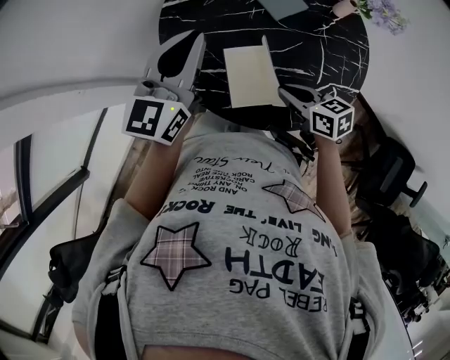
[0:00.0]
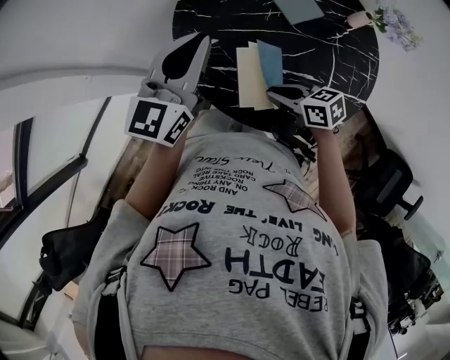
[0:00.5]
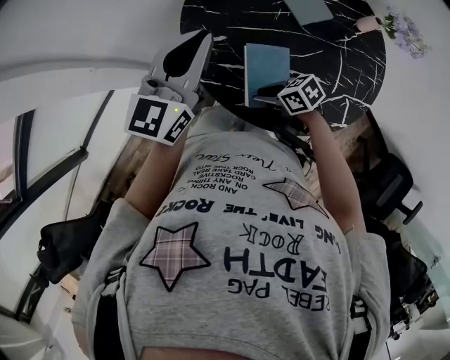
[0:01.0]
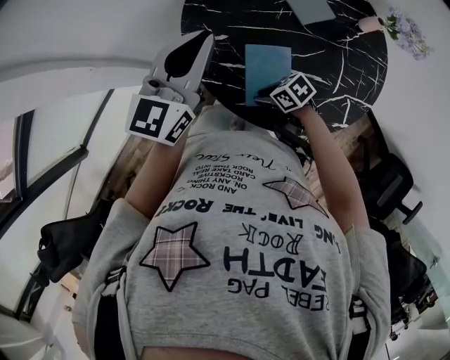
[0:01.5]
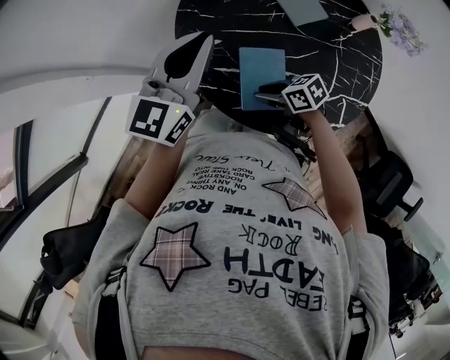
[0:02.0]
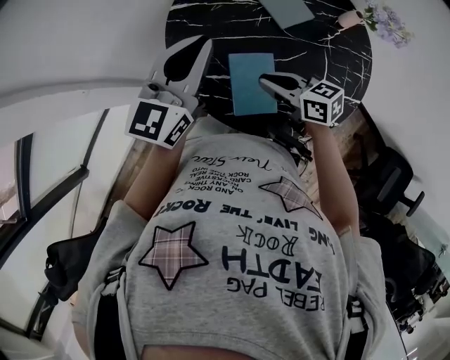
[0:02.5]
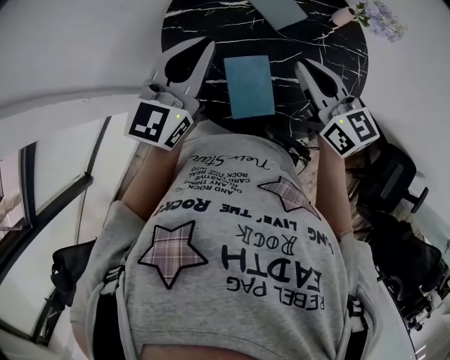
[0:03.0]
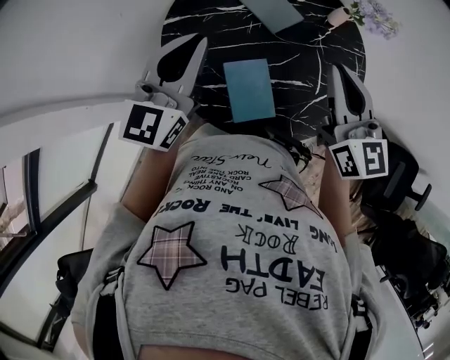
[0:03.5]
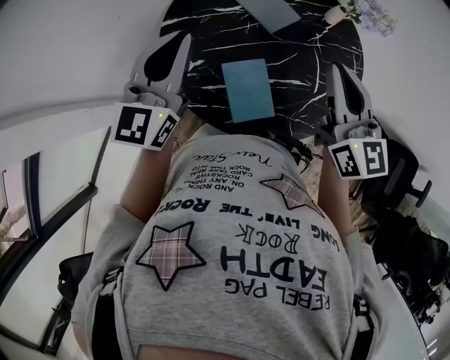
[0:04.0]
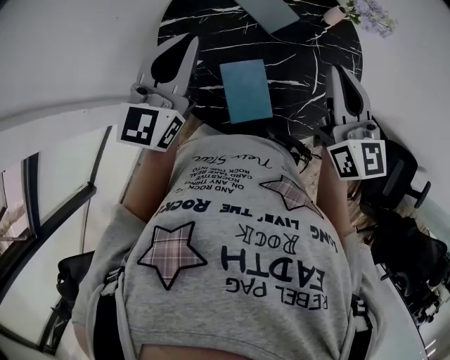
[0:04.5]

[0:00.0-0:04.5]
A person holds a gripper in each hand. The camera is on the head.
0.0 to 2.0 s: The right gripper changes place by about 10 cm, and turns by some 30 degrees.
2.0 to 4.5 s: The left gripper changes place by some 5 cm. Meanwhile the right gripper travels upward by about 30 cm, angles its fingers upward, by approximately 30 degrees, and closes up.

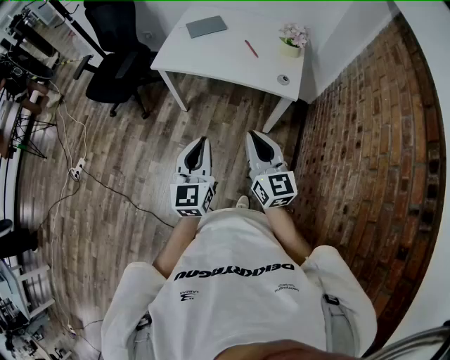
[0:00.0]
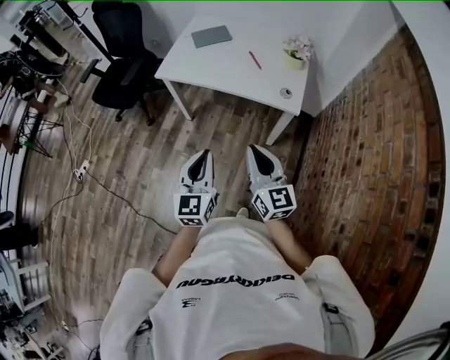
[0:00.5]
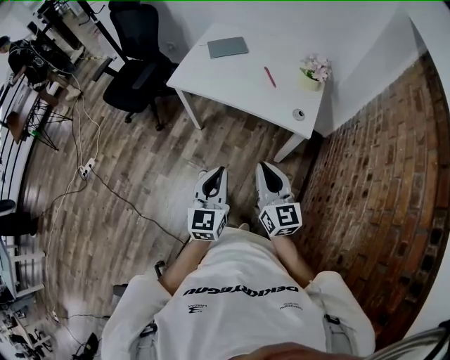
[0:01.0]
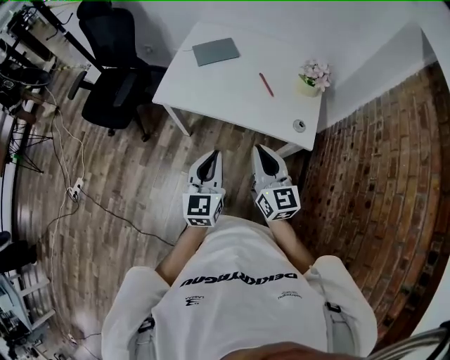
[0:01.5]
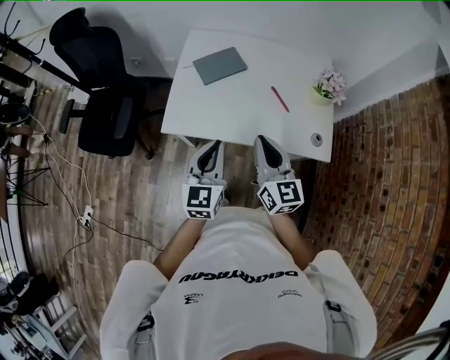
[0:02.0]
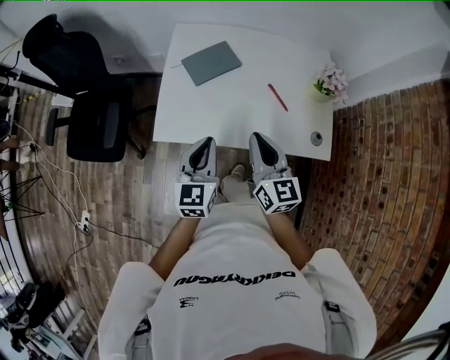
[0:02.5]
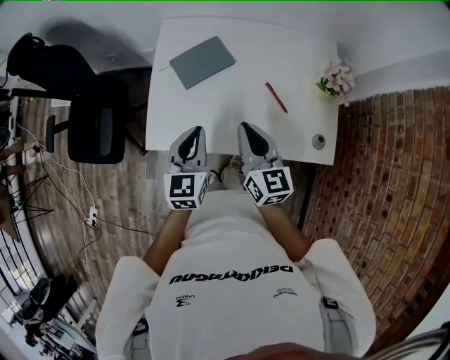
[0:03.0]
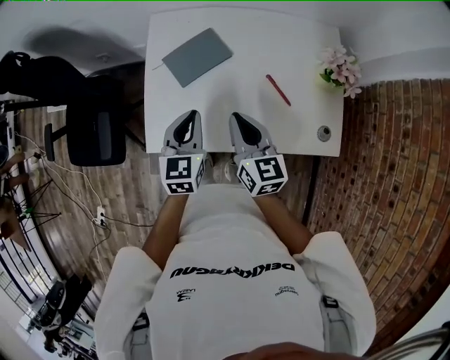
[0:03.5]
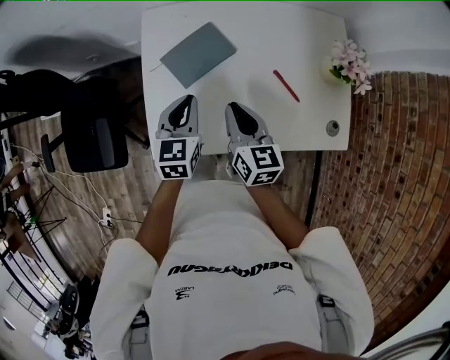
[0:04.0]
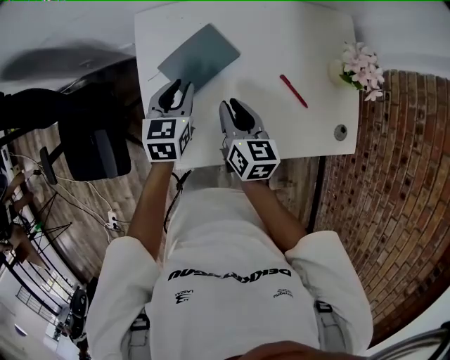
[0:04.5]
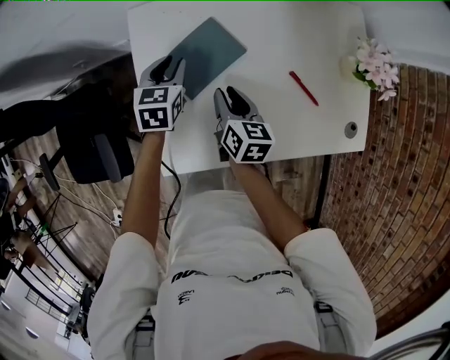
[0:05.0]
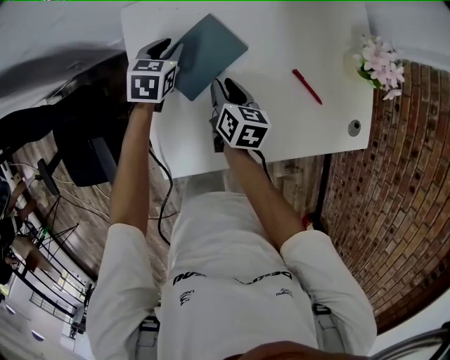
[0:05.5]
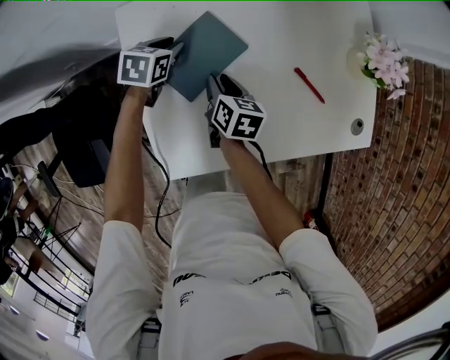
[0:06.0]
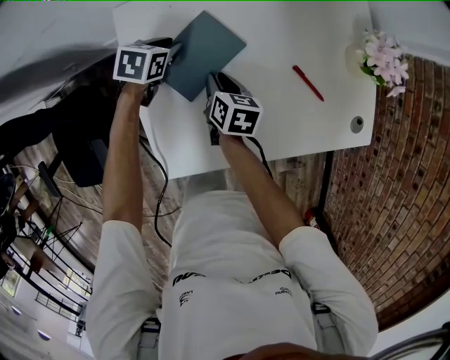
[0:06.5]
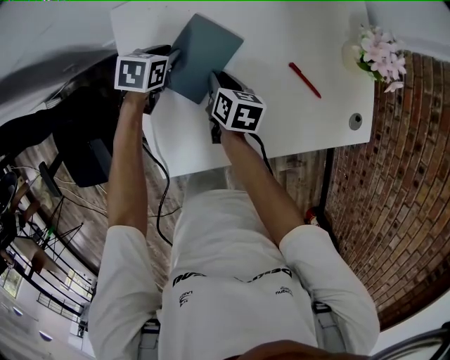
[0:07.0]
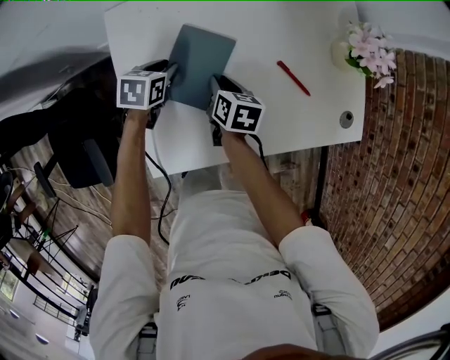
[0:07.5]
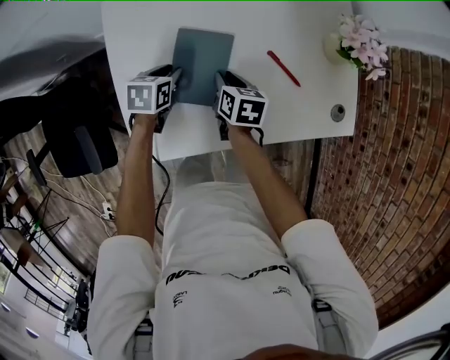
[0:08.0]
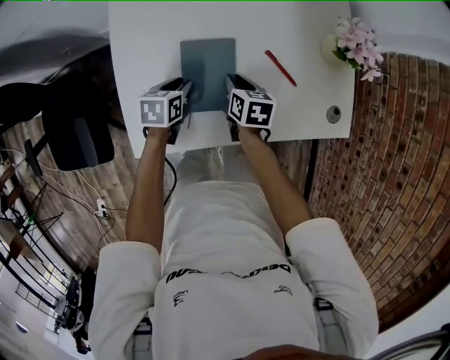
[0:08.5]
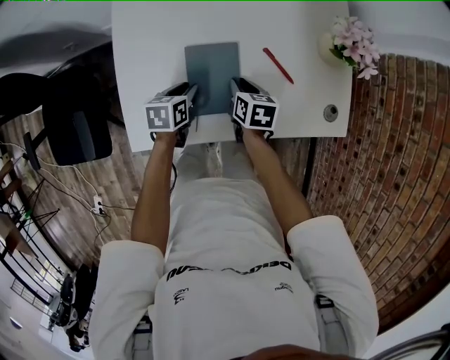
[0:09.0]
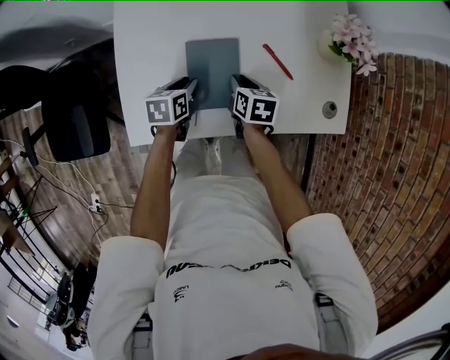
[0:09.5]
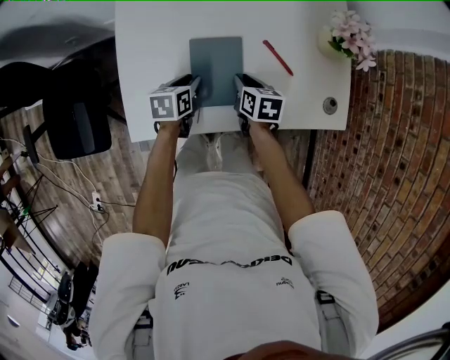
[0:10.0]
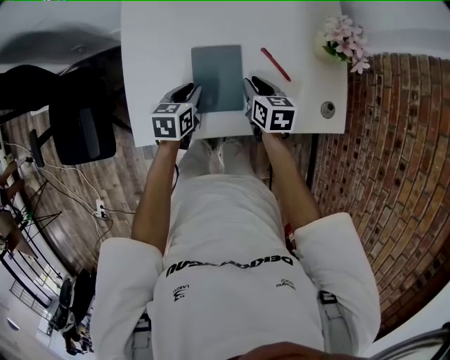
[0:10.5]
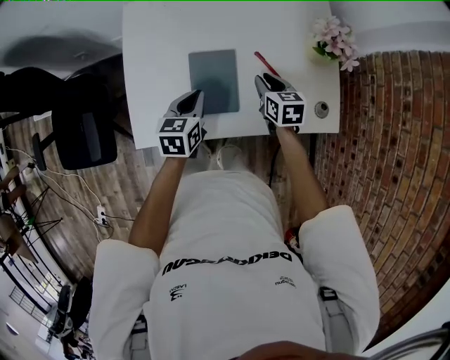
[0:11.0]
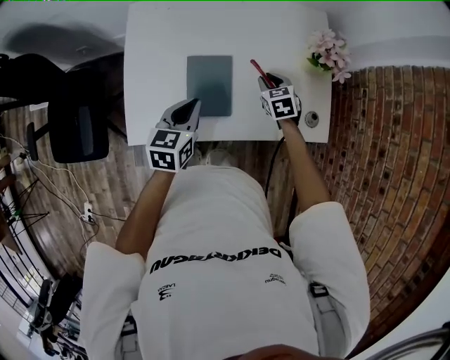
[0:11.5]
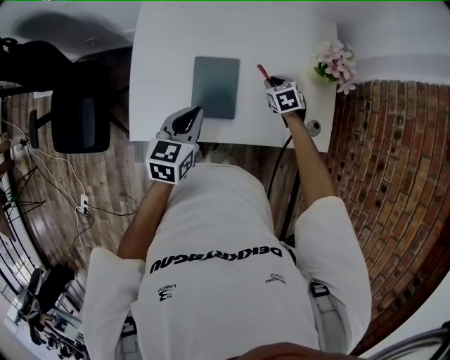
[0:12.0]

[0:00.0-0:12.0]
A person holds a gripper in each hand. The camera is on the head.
0.0 to 2.0 s: The pair of grippers is taken forward, approximately 40 cm.
2.0 to 4.0 s: The two grippers go about 30 cm forward and downward. The right gripper swivels roughly 20 degrees. Meanwhile the left gripper rotates some 20 degrees.
4.0 to 6.0 s: The right gripper travels downward and forward by about 20 cm, swivels about 30 degrees, and opens. The left gripper shifts about 30 cm forward and downward, swivels some 30 degrees, and opens.
6.0 to 8.0 s: The right gripper moves to the right, some 10 cm, while the left gripper heads backward and to the right, covering approximately 15 cm.
8.0 to 10.0 s: The right gripper moves to the right and backward, about 10 cm. The left gripper heads backward and to the right, covering roughly 10 cm.
10.0 to 12.0 s: The left gripper shifts about 20 cm upward, swivels roughly 20 degrees, and closes, while the right gripper goes roughly 15 cm to the right and forward, and rolls counterclockwise, seen from behind, by about 40 degrees.

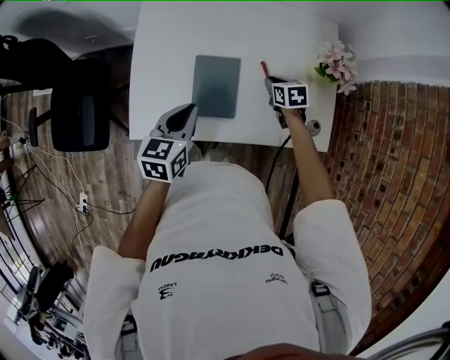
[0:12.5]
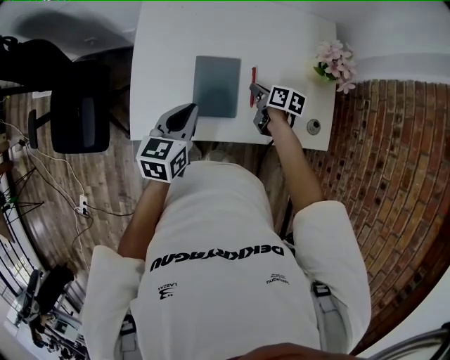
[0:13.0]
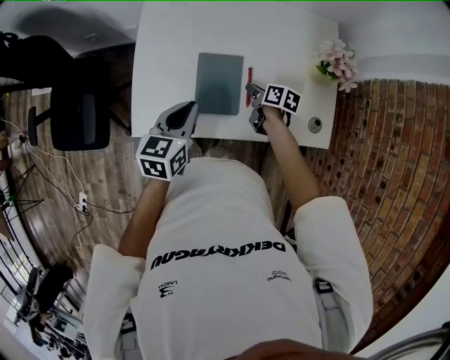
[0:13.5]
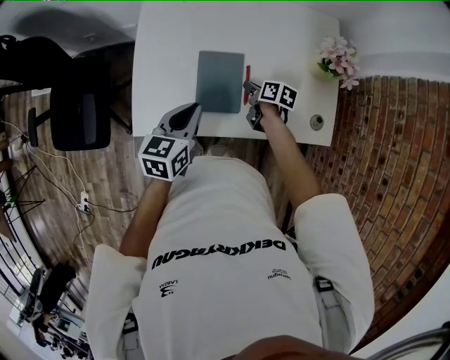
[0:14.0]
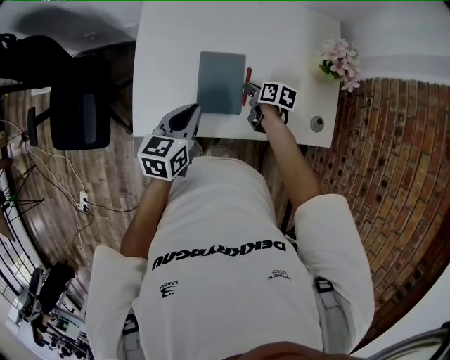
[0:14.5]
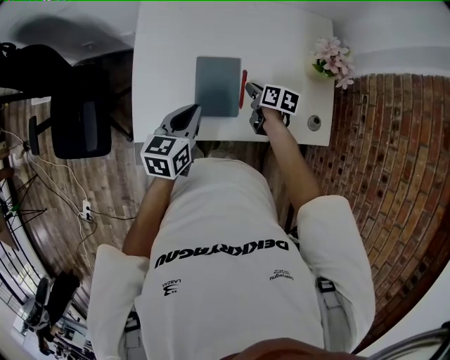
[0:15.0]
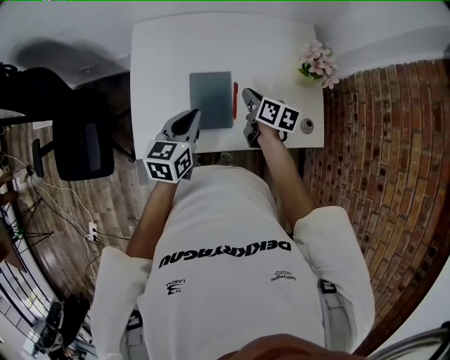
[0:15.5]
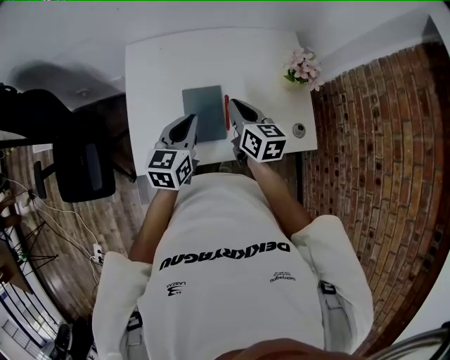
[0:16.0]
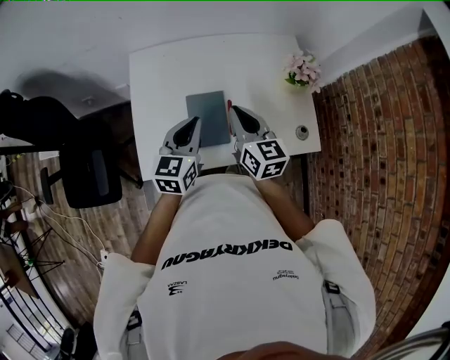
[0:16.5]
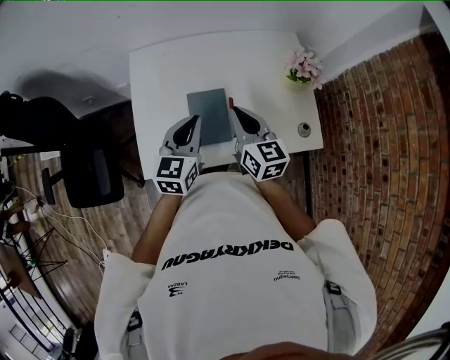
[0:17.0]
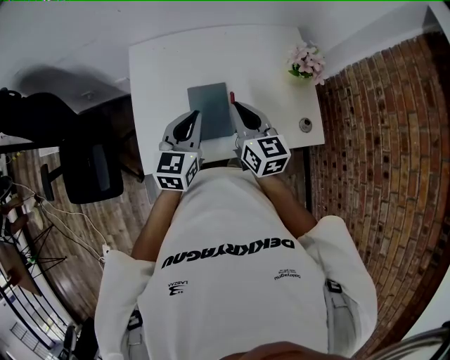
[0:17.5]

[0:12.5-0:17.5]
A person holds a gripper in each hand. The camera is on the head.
12.5 to 15.0 s: The right gripper is displaced to the left by roughly 5 cm, and swivels about 30 degrees.
15.0 to 17.5 s: The left gripper heads upward, covering about 10 cm, and swivels approximately 20 degrees; the right gripper moves upward, approximately 25 cm, and angles its fingers upward, by roughly 30 degrees.

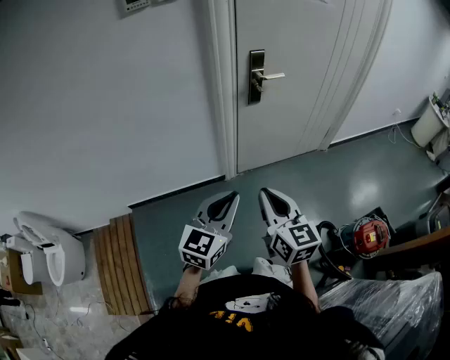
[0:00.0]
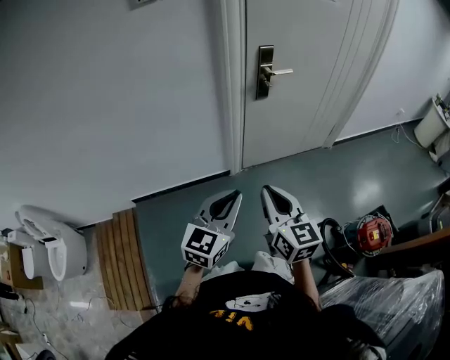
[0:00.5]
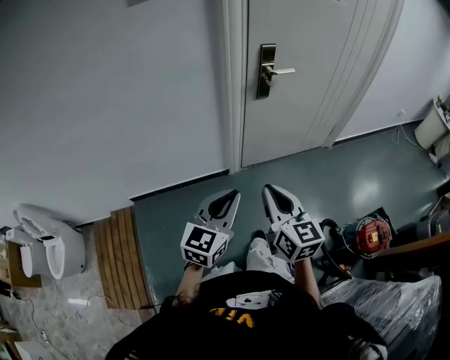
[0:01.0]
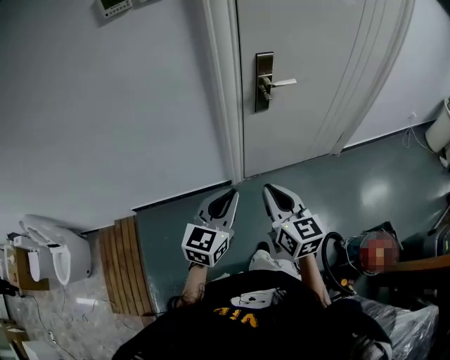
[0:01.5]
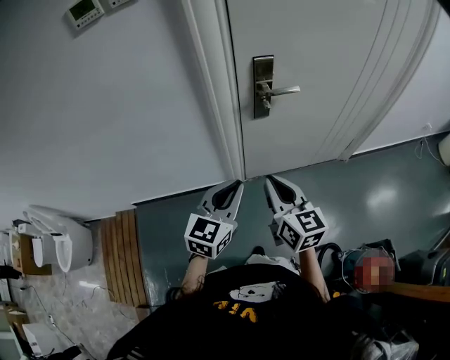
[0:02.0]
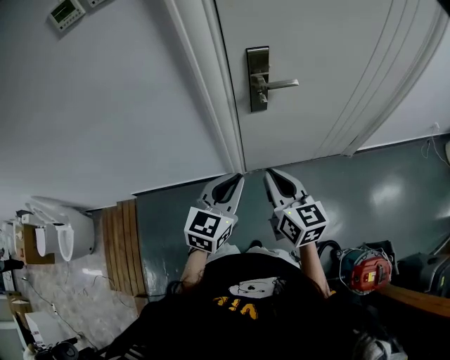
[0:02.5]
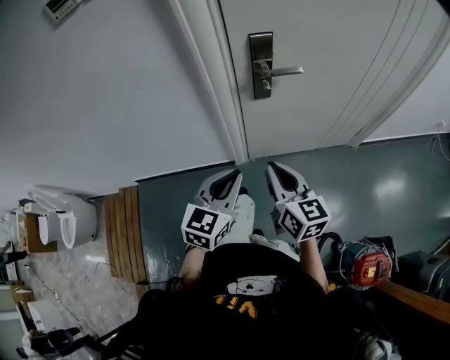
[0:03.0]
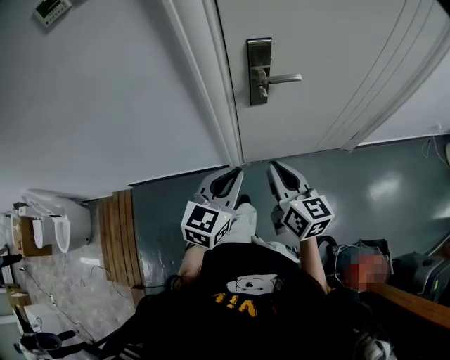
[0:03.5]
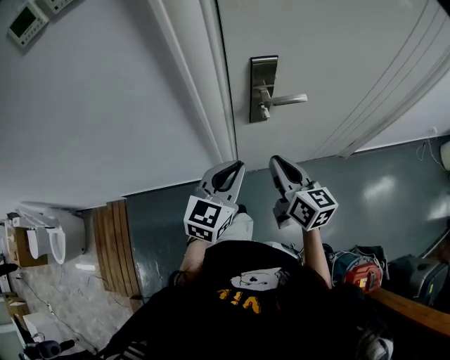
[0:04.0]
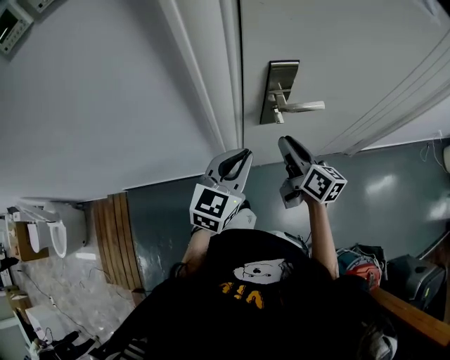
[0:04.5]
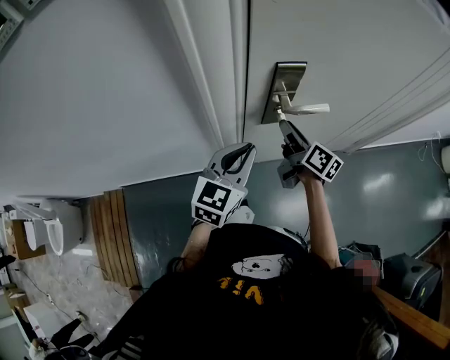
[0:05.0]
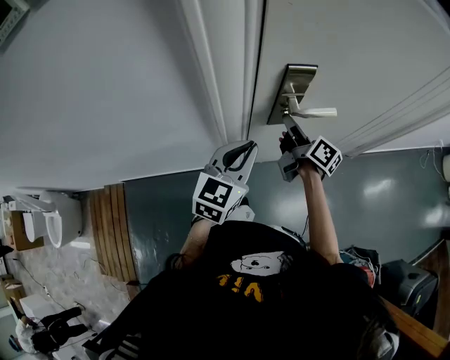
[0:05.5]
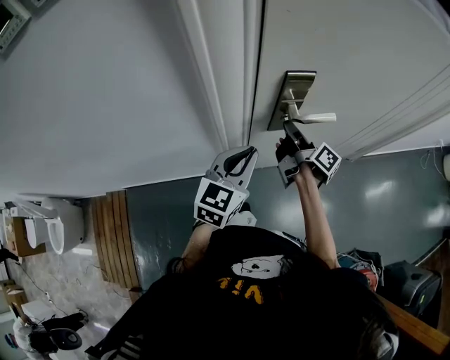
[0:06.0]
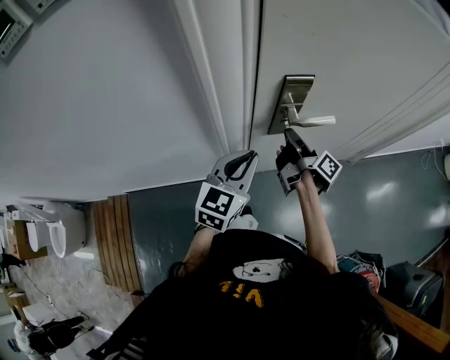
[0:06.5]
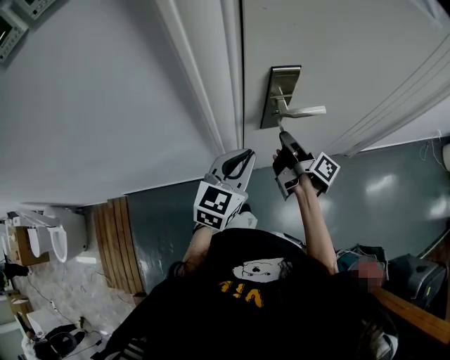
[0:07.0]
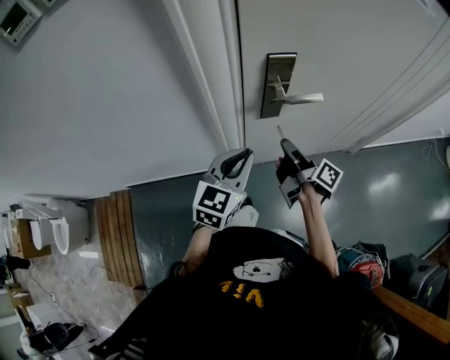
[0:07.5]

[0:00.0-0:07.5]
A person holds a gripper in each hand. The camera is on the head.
0.0 to 2.0 s: Both grippers travel together forward, approximately 25 cm.
2.0 to 4.0 s: Both grippers move forward, about 15 cm.
4.0 to 5.5 s: The left gripper moves forward, roughly 10 cm; the right gripper heads forward, covering some 20 cm, and rotates some 40 degrees.
5.5 to 7.5 s: The left gripper moves backward, roughly 5 cm; the right gripper travels backward by approximately 10 cm.
